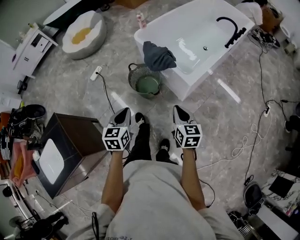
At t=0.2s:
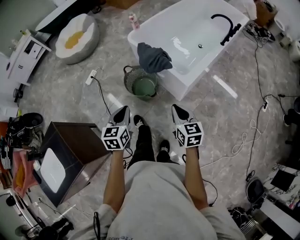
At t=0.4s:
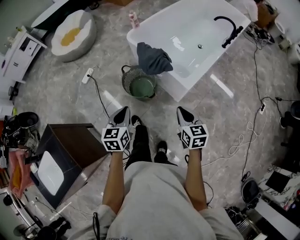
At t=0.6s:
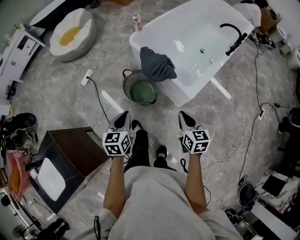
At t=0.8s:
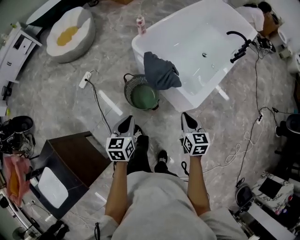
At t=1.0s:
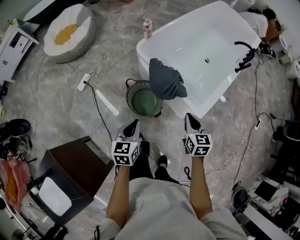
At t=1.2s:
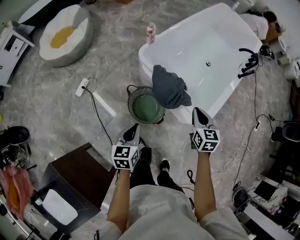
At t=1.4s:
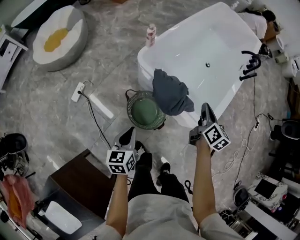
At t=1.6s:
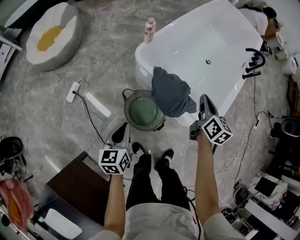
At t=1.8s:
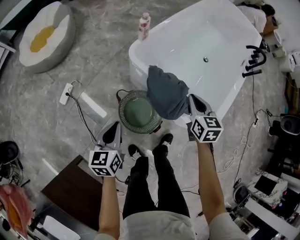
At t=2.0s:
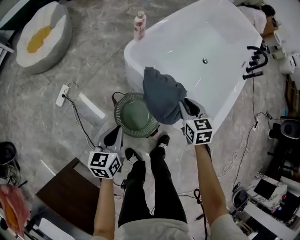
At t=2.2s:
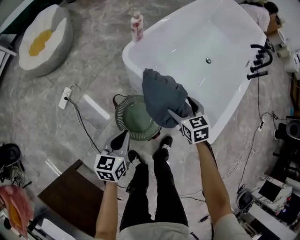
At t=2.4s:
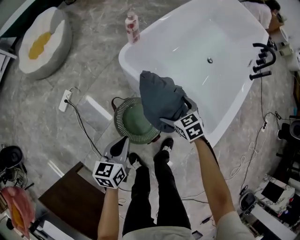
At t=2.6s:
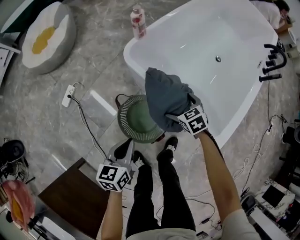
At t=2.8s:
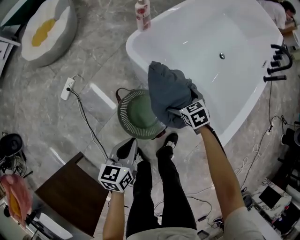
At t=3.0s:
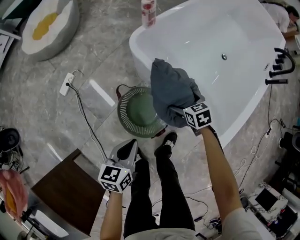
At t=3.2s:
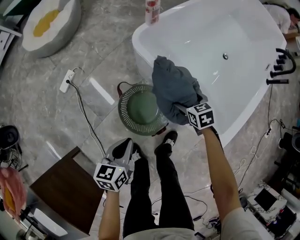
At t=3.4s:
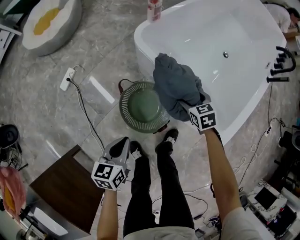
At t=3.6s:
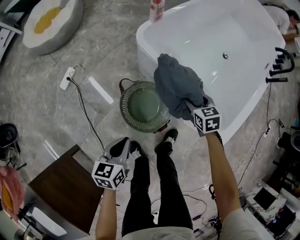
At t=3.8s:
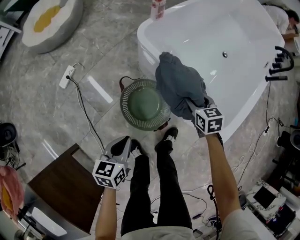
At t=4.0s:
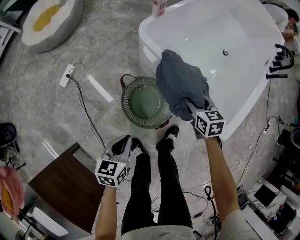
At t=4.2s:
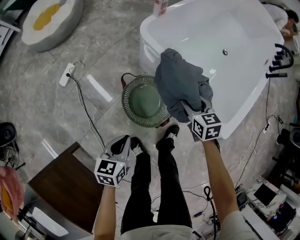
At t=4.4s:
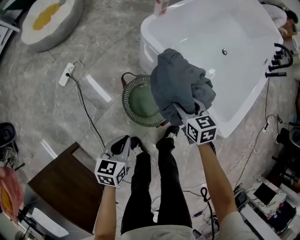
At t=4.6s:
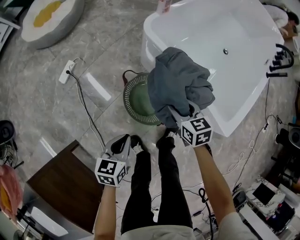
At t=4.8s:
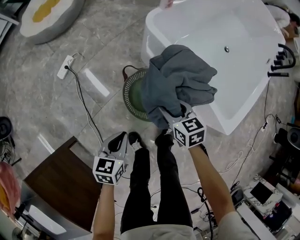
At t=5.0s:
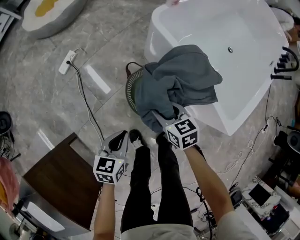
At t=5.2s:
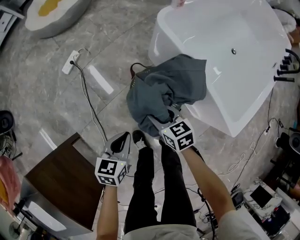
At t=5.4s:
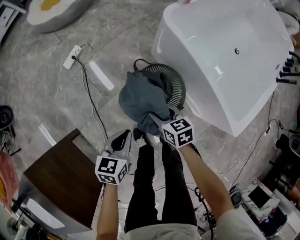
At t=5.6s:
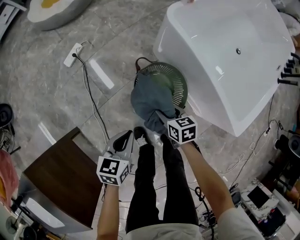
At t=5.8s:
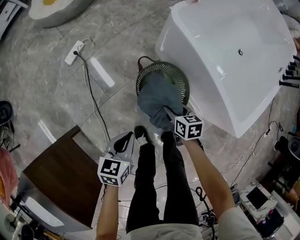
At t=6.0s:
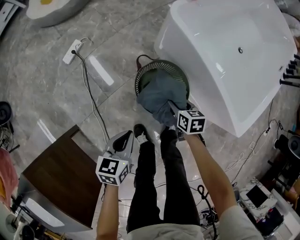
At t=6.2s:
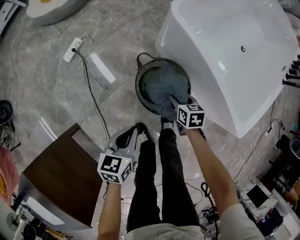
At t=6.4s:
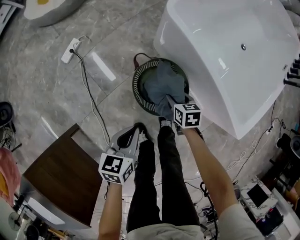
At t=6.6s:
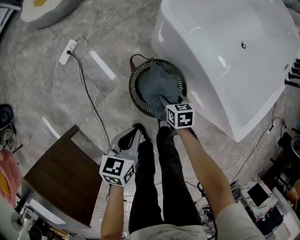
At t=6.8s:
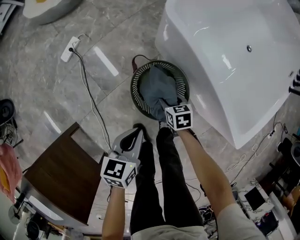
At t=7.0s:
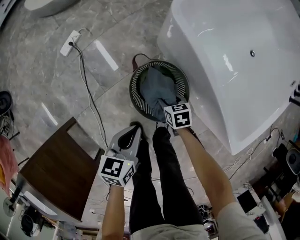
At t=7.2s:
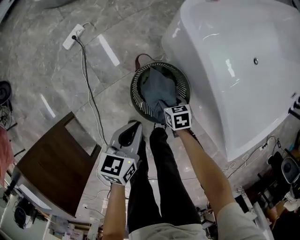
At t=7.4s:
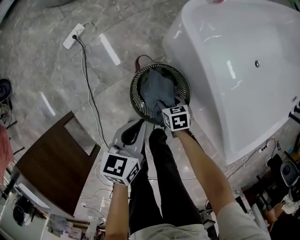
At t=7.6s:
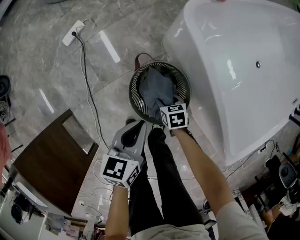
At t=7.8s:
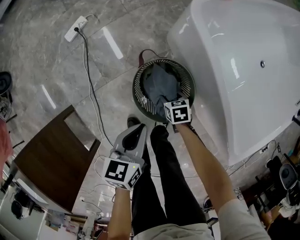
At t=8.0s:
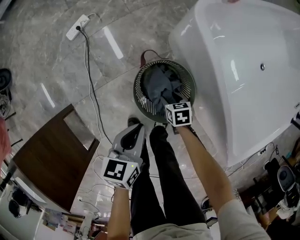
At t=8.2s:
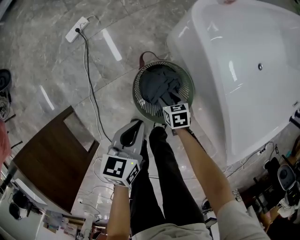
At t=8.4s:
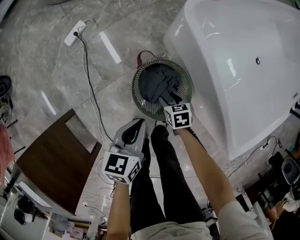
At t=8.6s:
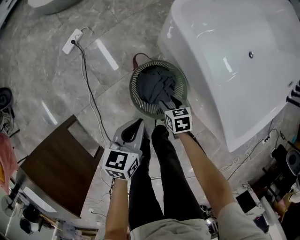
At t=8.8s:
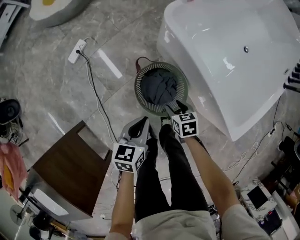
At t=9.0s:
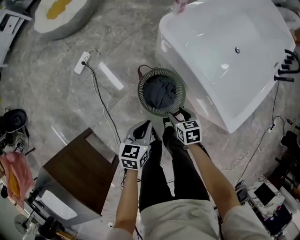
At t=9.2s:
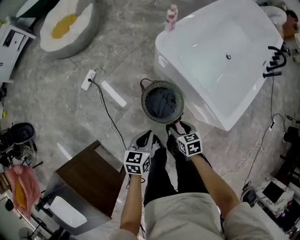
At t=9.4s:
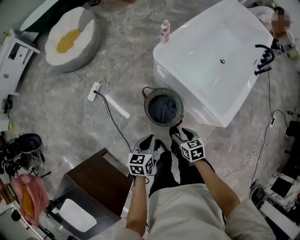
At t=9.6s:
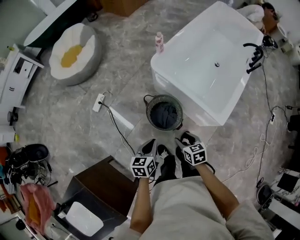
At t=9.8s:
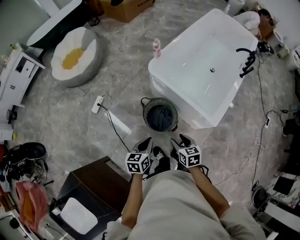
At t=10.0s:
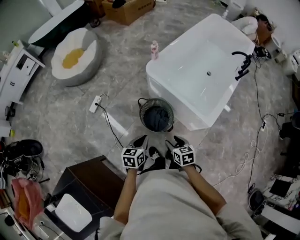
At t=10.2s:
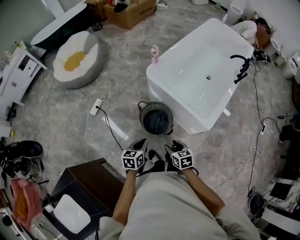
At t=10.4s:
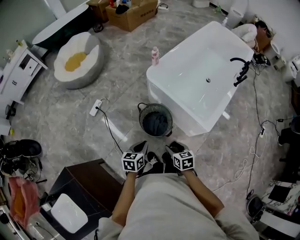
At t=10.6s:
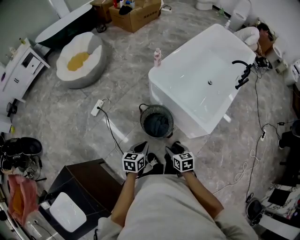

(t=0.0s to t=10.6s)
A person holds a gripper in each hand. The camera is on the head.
t=0.0s - t=1.6s: The two grippers travel together, forward, roughly 40 cm. The right gripper changes its angle by some 30 degrees.
t=1.6s - t=3.0s: The left gripper moves downward and to the right, roughly 15 cm, while the right gripper is displaced downward by approximately 30 cm, tips its fingers downward by about 30 degrees, and opens.
t=3.0s - t=4.6s: The left gripper goes some 10 cm to the left and backward; the right gripper shifts some 15 cm to the left, backward and upward, and closes its fingers.
t=4.6s - t=6.0s: The right gripper goes about 15 cm downward; the left gripper shifts by some 5 cm.
t=6.0s - t=7.6s: The right gripper moves downward and forward, roughly 15 cm, and rotates about 20 degrees. Meanwhile the left gripper goes about 15 cm forward and to the right.
t=7.6s - t=9.0s: The left gripper shifts some 10 cm backward and upward. Meanwhile the right gripper goes roughly 20 cm upward and backward.
t=9.0s - t=10.6s: The two grippers go about 25 cm upward and backward.

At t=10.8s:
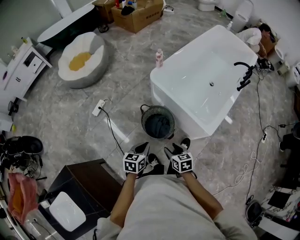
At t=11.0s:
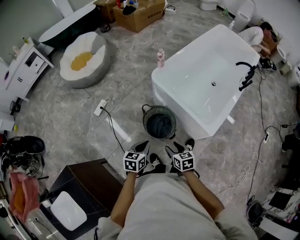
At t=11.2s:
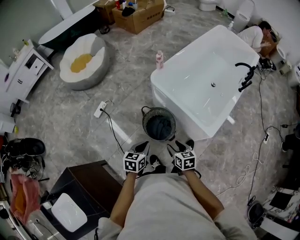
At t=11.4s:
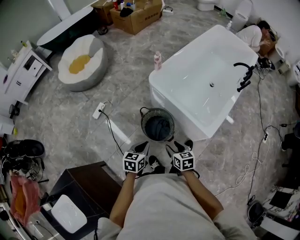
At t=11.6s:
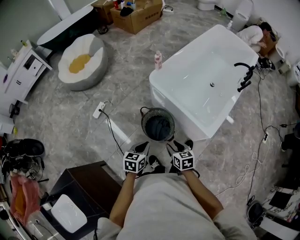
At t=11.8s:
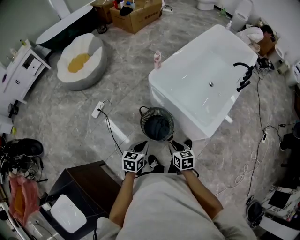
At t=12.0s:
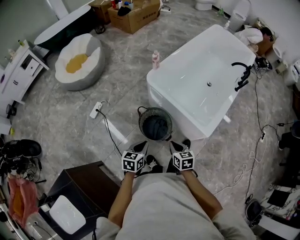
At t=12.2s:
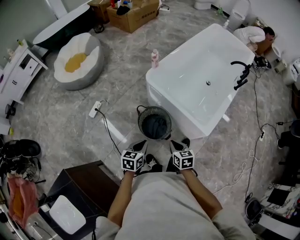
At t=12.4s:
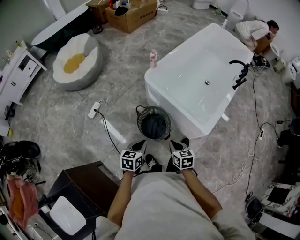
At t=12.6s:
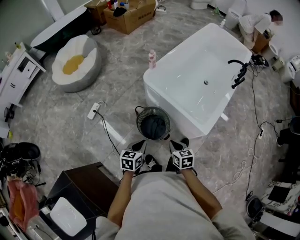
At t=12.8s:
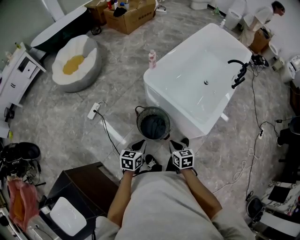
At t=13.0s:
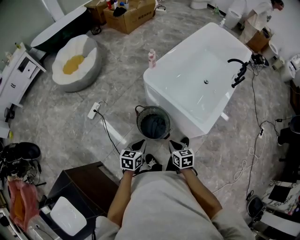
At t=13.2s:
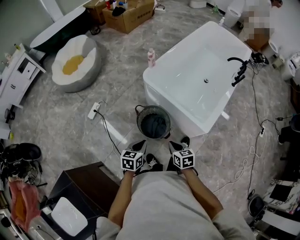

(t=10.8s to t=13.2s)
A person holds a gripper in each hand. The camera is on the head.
t=10.8s - t=12.0s: The right gripper moves approximately 5 cm, and closes.
t=12.0s - t=13.2s: The grippers make only small movements.

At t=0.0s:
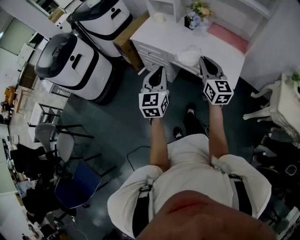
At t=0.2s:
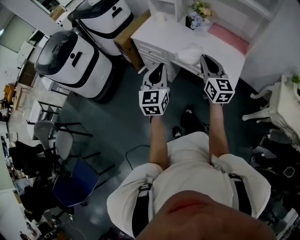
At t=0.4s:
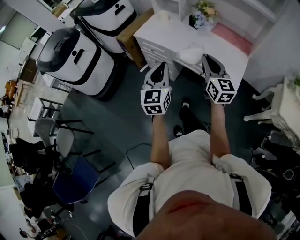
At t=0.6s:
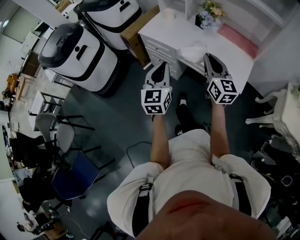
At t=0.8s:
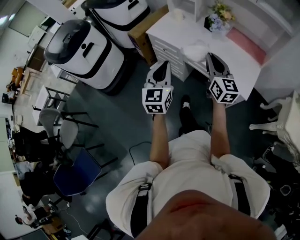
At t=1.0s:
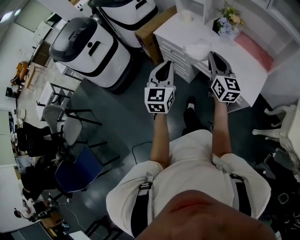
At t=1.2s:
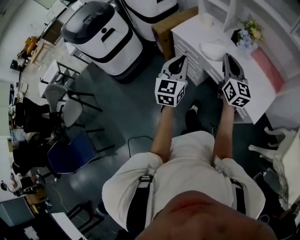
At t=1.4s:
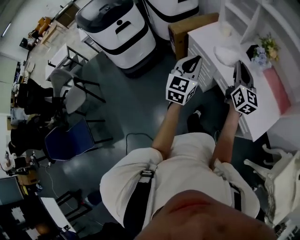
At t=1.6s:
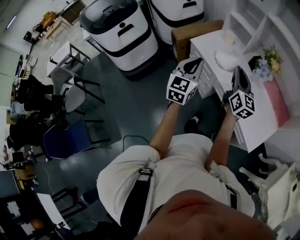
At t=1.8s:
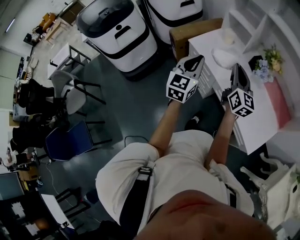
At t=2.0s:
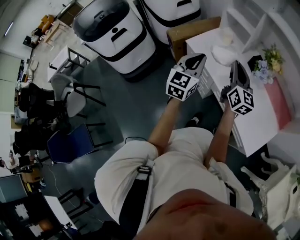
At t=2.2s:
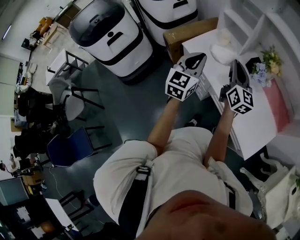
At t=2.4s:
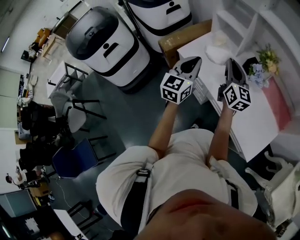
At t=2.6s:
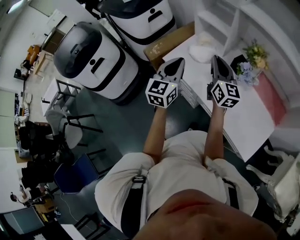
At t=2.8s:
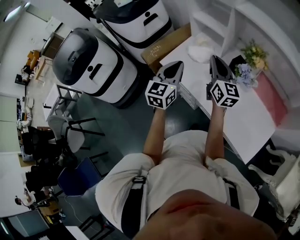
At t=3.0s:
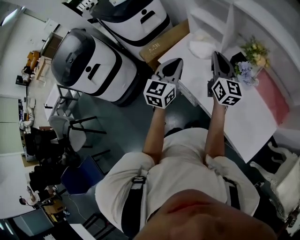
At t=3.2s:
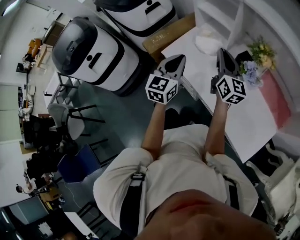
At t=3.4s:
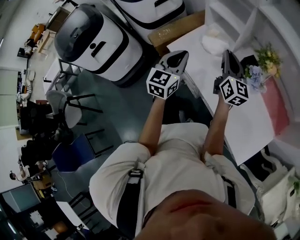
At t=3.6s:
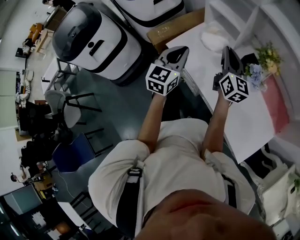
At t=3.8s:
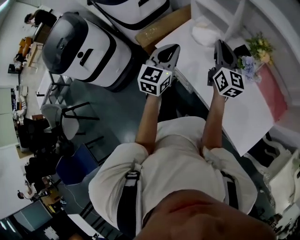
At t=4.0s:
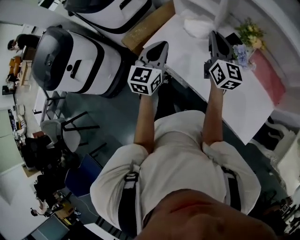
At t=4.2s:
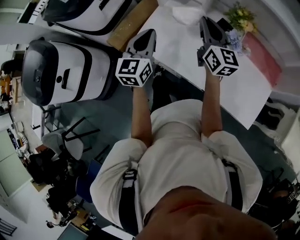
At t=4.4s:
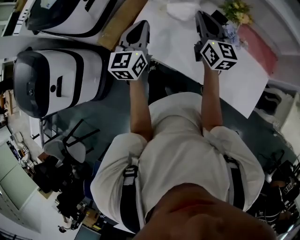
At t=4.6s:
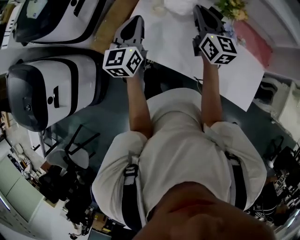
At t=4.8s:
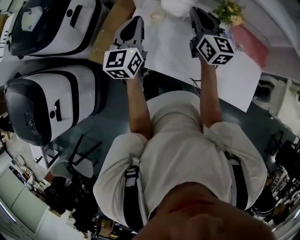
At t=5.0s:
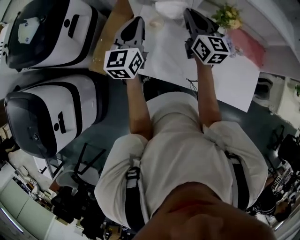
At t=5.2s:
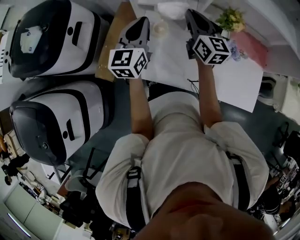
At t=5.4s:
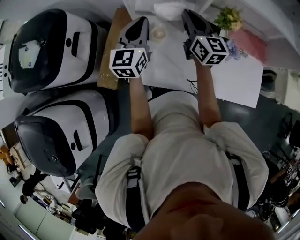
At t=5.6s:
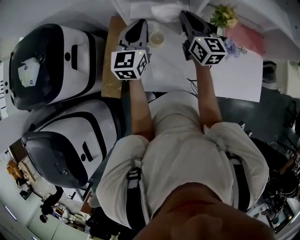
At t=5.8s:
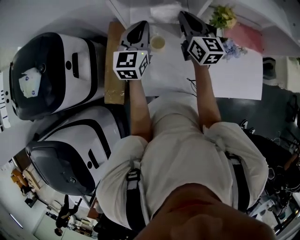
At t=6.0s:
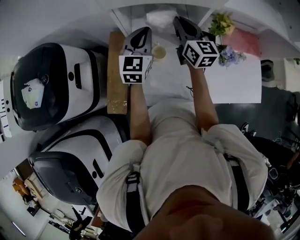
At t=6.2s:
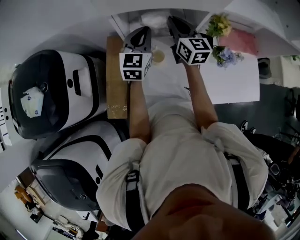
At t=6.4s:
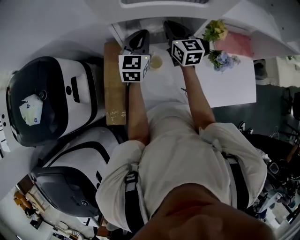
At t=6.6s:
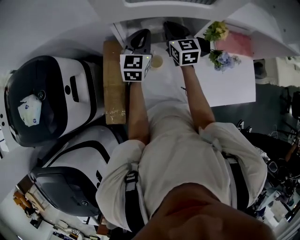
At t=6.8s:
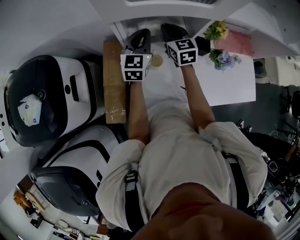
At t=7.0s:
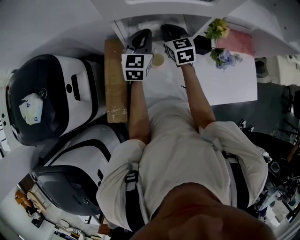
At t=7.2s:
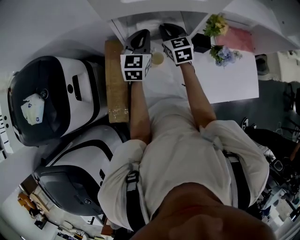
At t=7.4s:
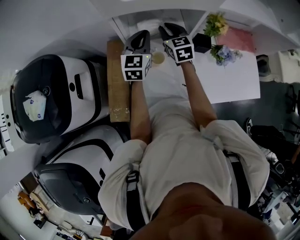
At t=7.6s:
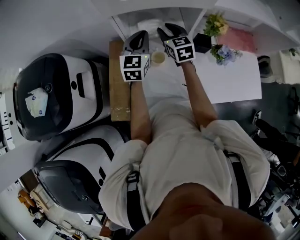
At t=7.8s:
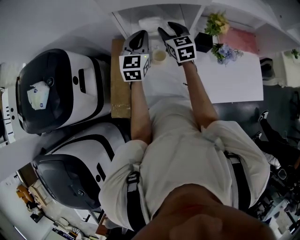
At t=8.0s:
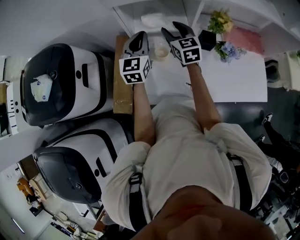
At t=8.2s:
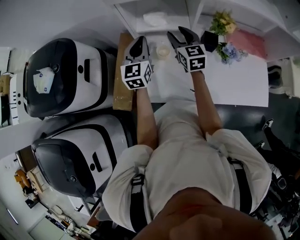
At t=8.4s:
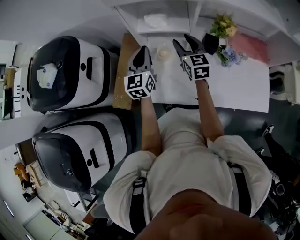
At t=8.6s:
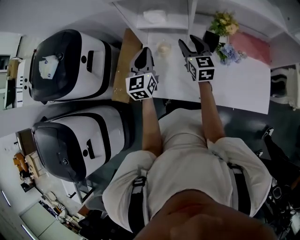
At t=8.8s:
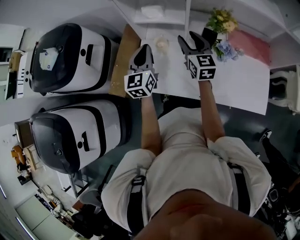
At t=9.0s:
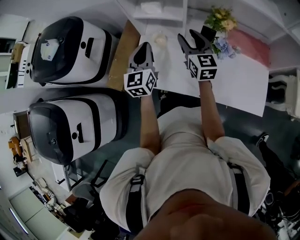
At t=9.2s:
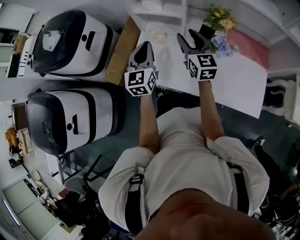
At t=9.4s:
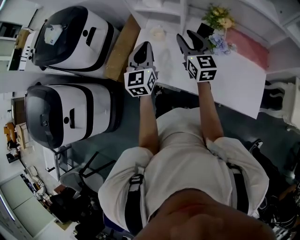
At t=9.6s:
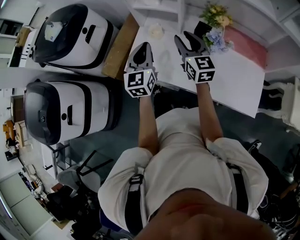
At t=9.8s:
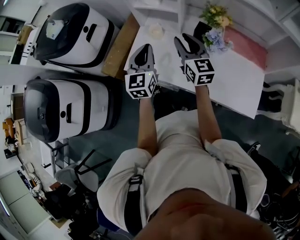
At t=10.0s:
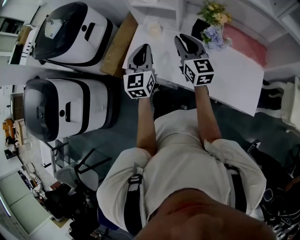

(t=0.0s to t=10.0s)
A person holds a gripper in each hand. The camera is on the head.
t=0.0s - t=1.4s: The two grippers go approximately 20 cm forward and to the left.
t=1.4s - t=2.8s: Both grippers move forward, about 25 cm.
t=2.8s - t=4.2s: The grippers both shift forward by about 10 cm.
t=4.2s - t=5.8s: The left gripper ends up approximately 30 cm from where it was, and changes its angle by roughly 30 degrees. Meanwhile the right gripper shifts by roughly 20 cm, and rotates some 30 degrees.
t=5.8s - t=7.2s: The right gripper goes about 10 cm downward, to the left and forward, and swivels roughly 30 degrees, while the left gripper moves forward, some 5 cm.
t=7.2s - t=8.6s: The right gripper travels backward and to the right by some 15 cm, and opens its fingers. Meanwhile the left gripper goes about 15 cm backward, and turns by approximately 20 degrees.
t=8.6s - t=10.0s: The left gripper shifts about 20 cm backward and to the right, while the right gripper moves backward, some 15 cm, and closes up.
